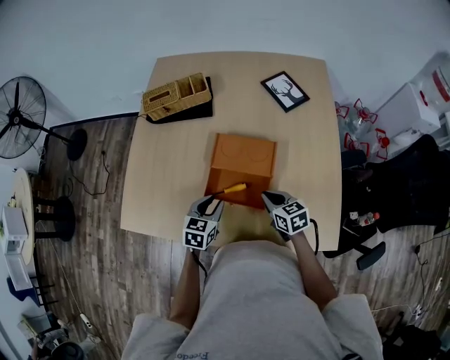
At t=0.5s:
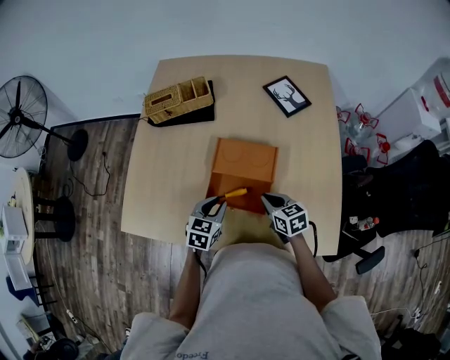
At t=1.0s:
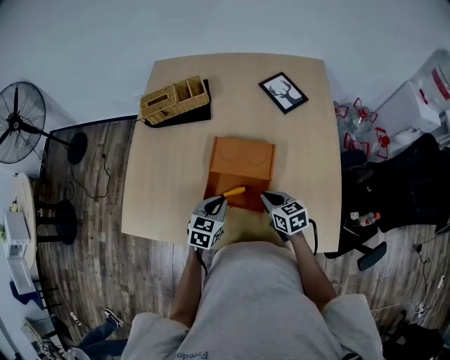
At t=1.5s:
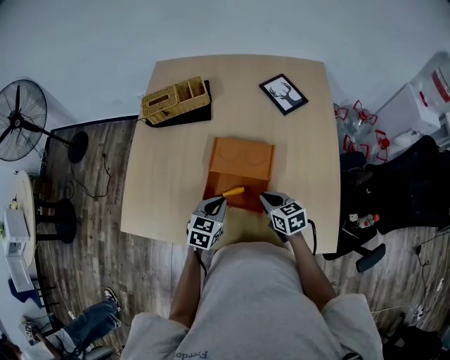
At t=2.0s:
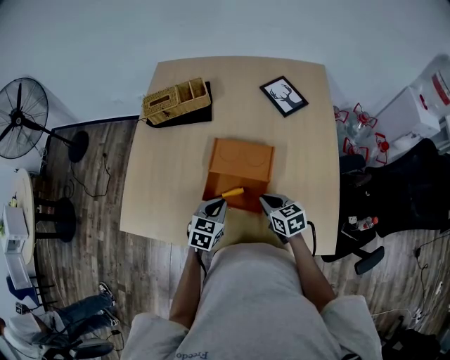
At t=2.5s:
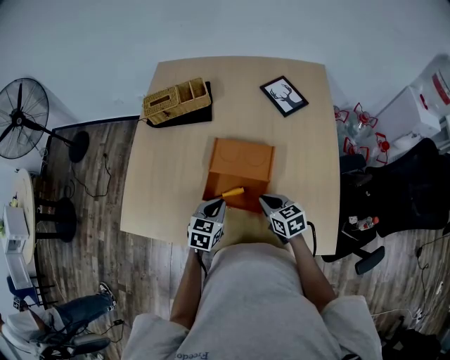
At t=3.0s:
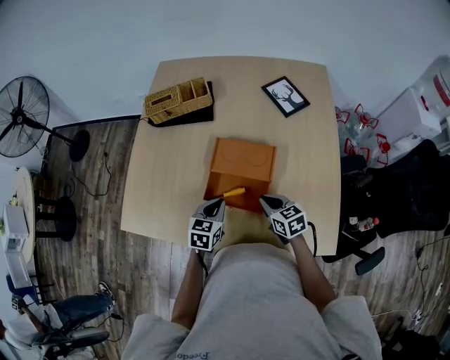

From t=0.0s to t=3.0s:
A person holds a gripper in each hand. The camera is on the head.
From t=0.0s to t=1.5s: The left gripper closes.
From t=1.5s to t=3.0s: There are only small adjustments of the grippers.

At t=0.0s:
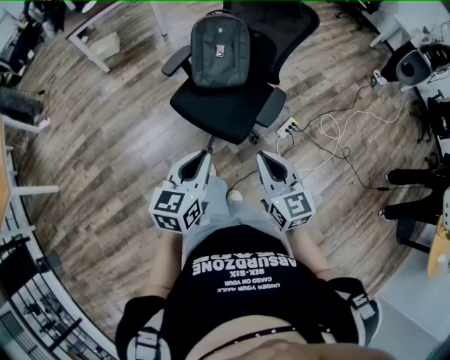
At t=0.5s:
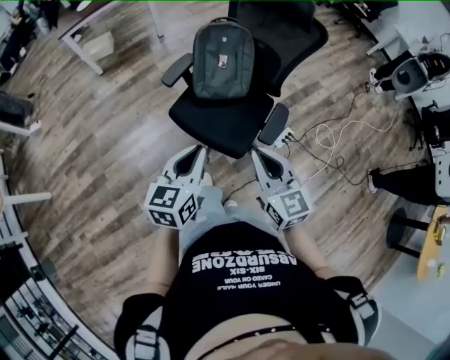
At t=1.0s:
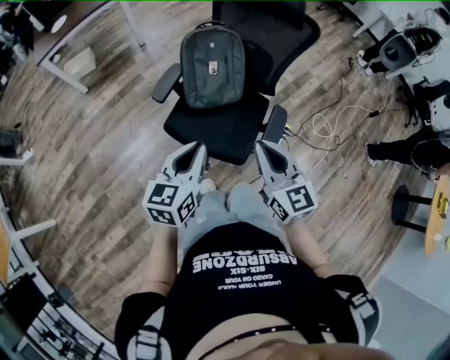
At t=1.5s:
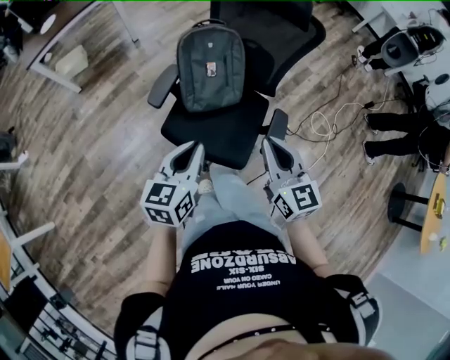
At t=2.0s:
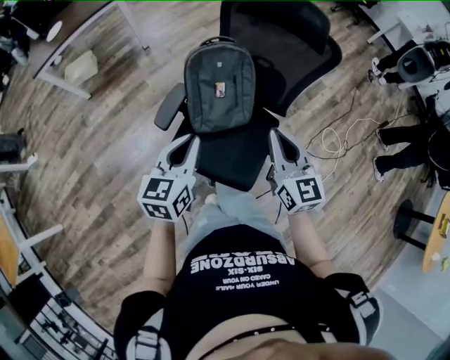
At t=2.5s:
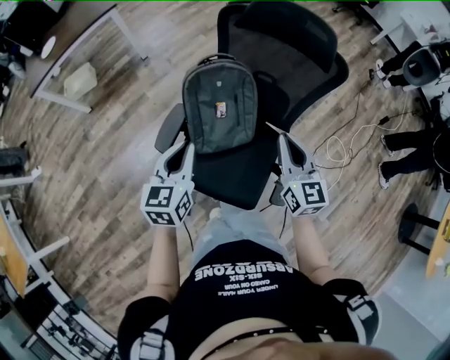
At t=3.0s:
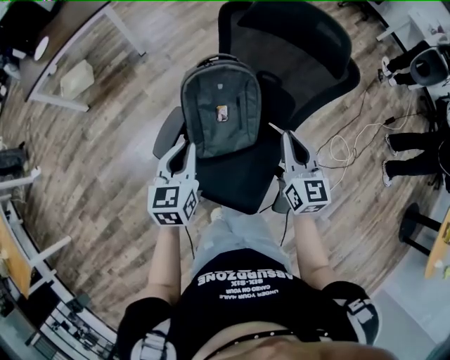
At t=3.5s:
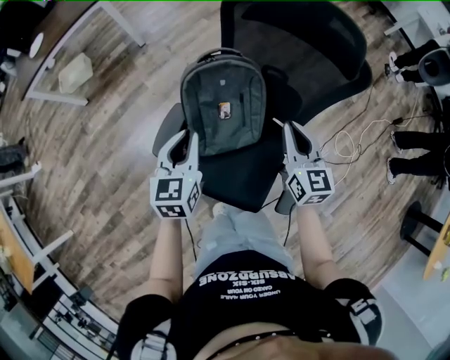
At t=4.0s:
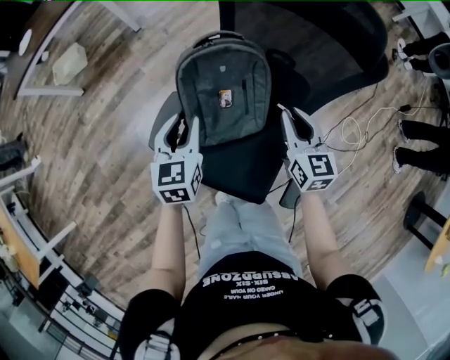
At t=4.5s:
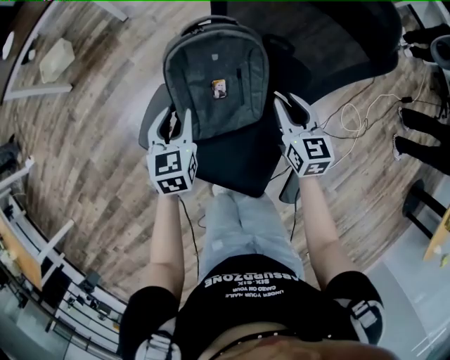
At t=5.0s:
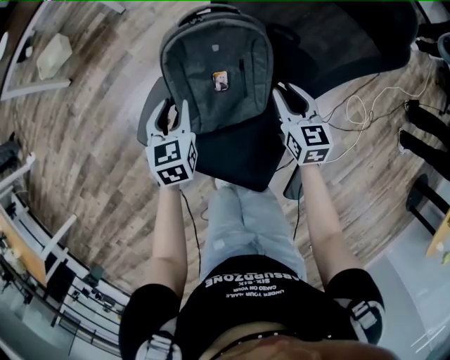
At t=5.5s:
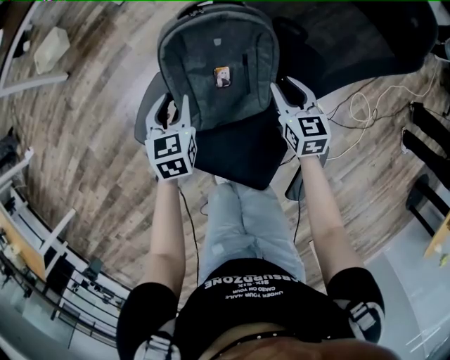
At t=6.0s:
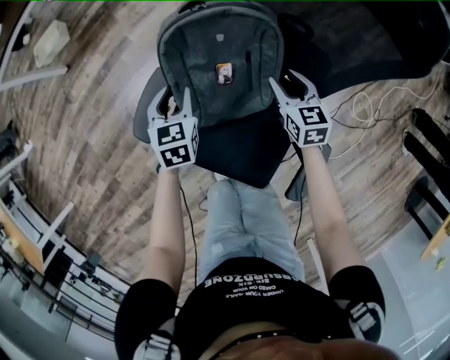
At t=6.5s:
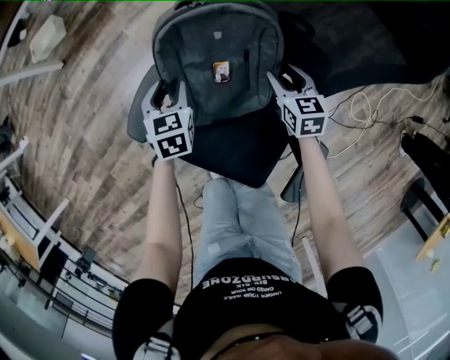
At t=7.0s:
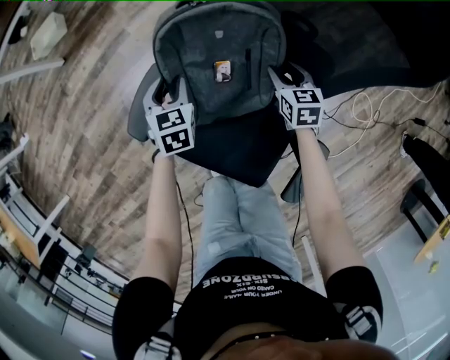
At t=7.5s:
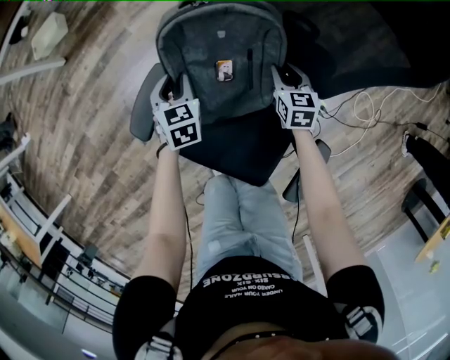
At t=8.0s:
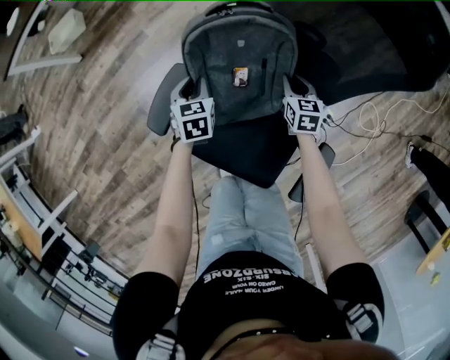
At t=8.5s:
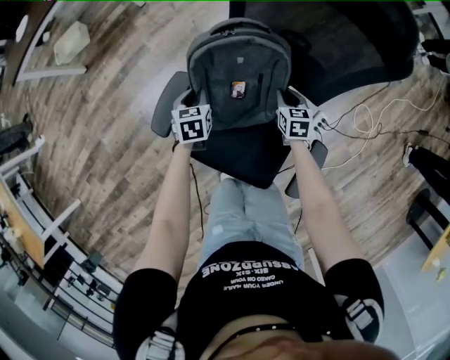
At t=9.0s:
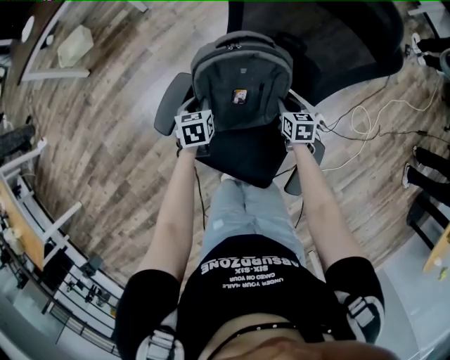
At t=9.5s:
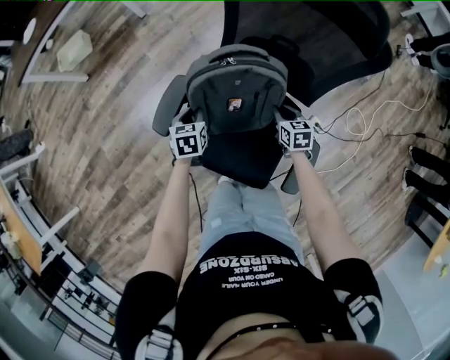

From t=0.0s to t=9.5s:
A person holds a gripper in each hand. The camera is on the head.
From t=0.0s to t=2.0s: Both grippers move forward, roughly 40 cm.
From t=2.0s to t=4.0s: Both grippers travel together forward and downward, some 25 cm.
From t=4.0s to t=5.5s: Both grippers travel together downward, approximately 15 cm.
From t=5.5s to t=7.5s: The grippers both shift downward by approximately 10 cm.
From t=7.5s to t=9.5s: The two grippers go about 10 cm backward.

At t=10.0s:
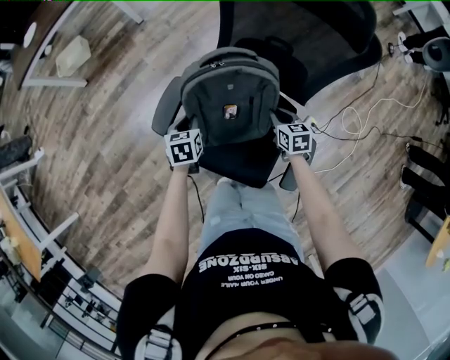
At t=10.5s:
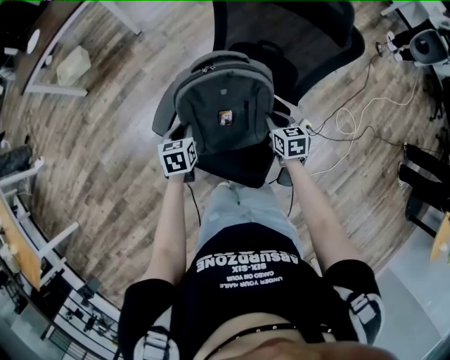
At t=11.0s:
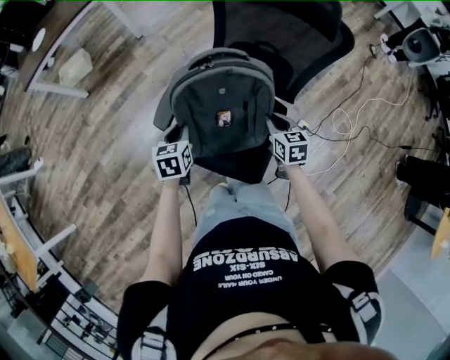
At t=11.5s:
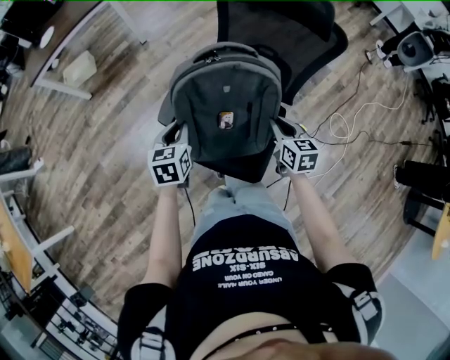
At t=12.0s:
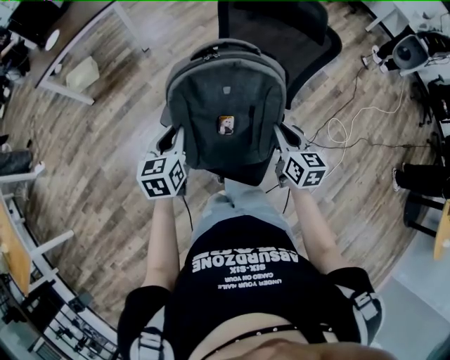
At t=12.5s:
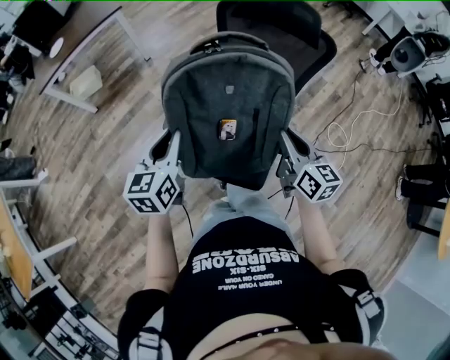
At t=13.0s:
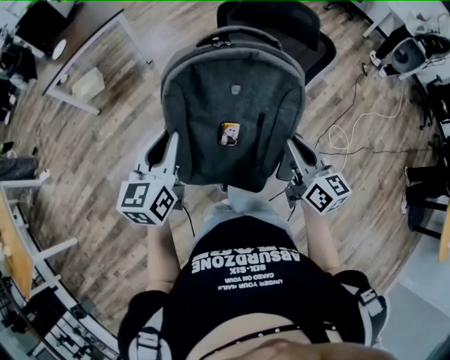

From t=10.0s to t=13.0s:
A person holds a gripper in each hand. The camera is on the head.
From t=10.0s to t=11.5s: The two grippers go some 20 cm upward and backward.
From t=11.5s to t=13.0s: The left gripper shifts approximately 20 cm upward, and swivels about 30 degrees. The right gripper travels upward and backward by approximately 20 cm, and swivels approximately 30 degrees.

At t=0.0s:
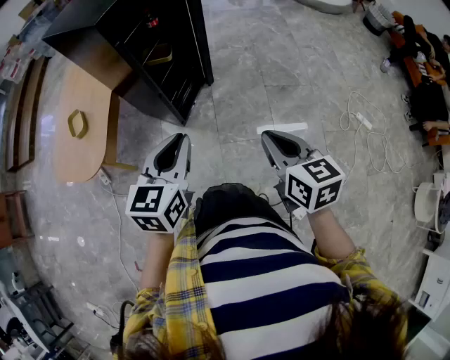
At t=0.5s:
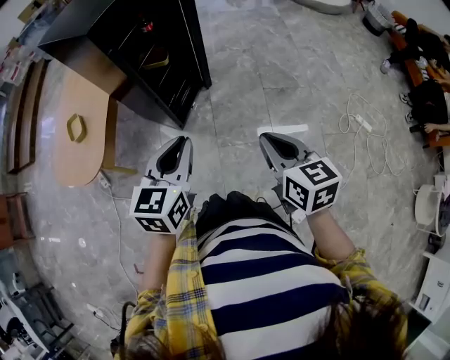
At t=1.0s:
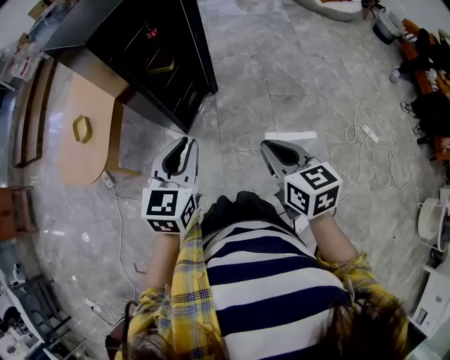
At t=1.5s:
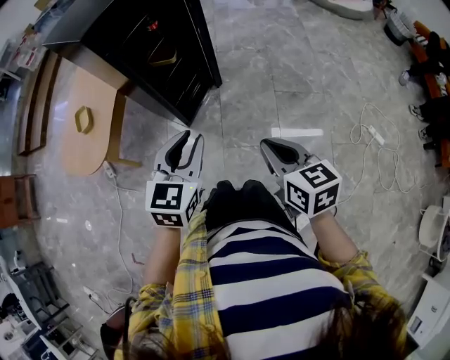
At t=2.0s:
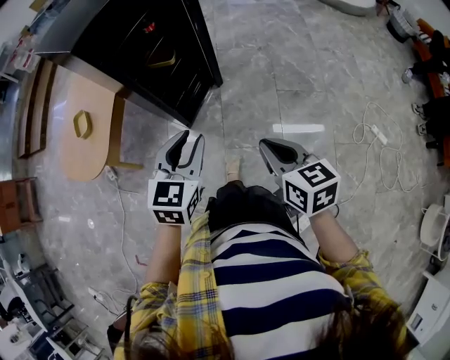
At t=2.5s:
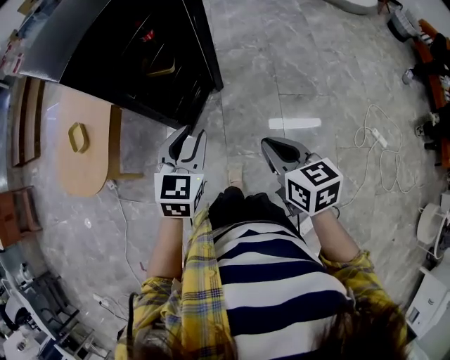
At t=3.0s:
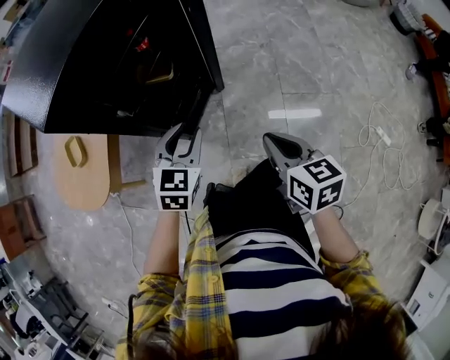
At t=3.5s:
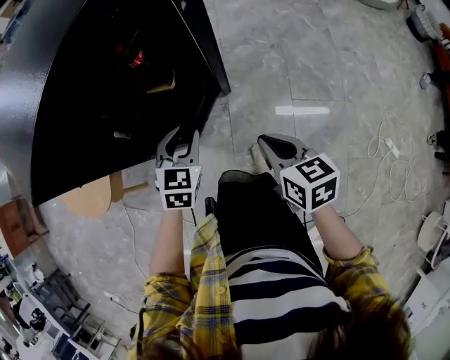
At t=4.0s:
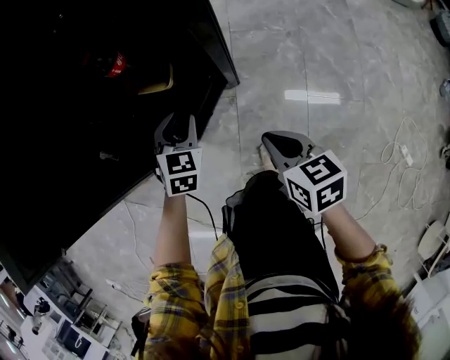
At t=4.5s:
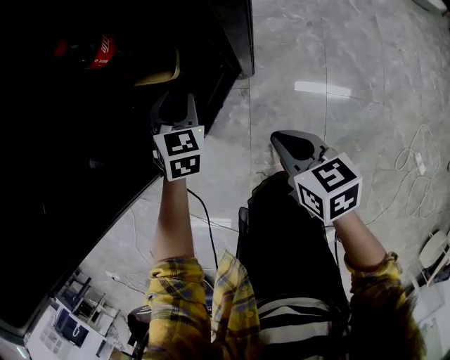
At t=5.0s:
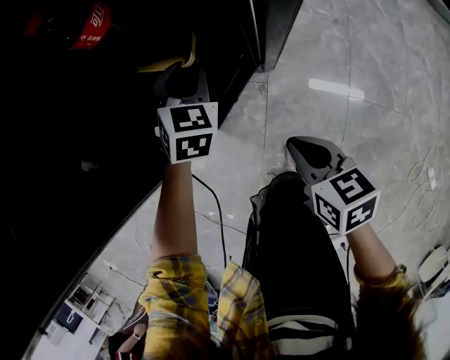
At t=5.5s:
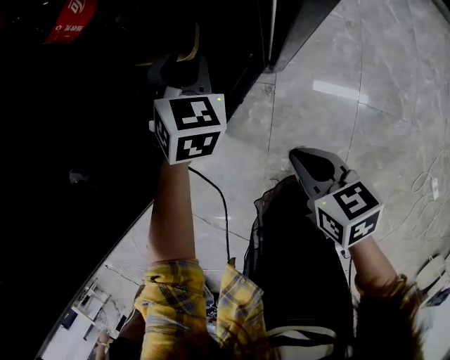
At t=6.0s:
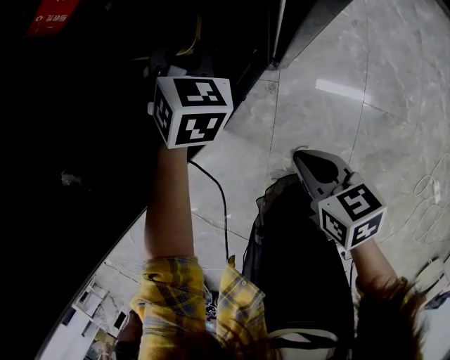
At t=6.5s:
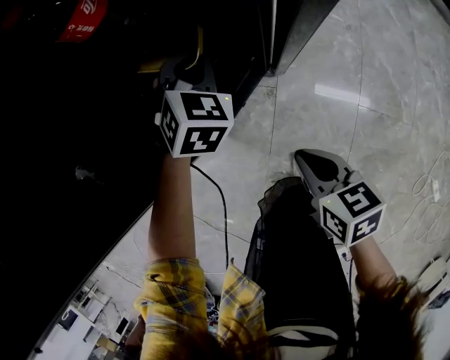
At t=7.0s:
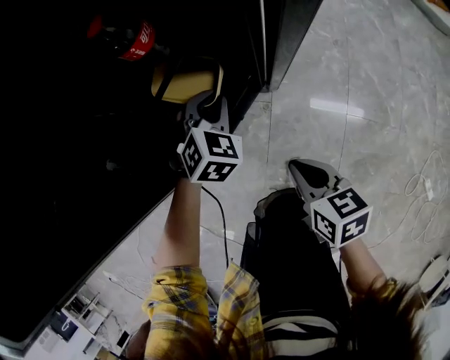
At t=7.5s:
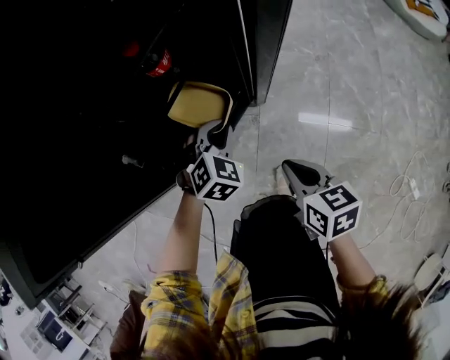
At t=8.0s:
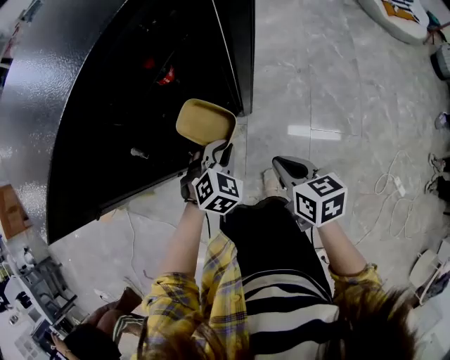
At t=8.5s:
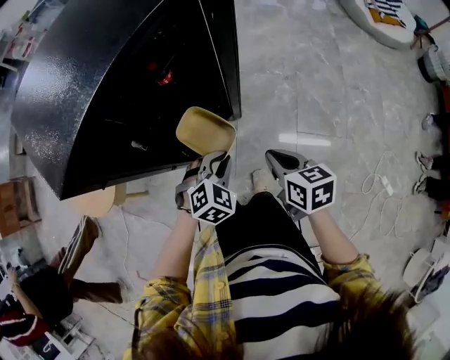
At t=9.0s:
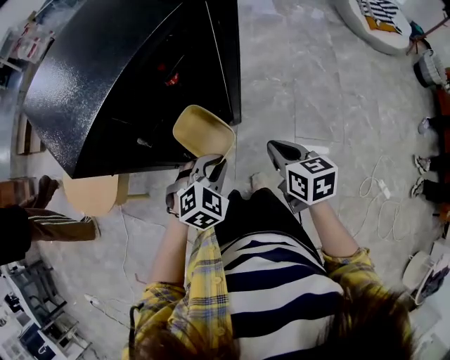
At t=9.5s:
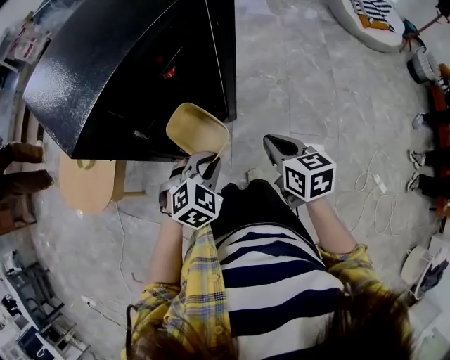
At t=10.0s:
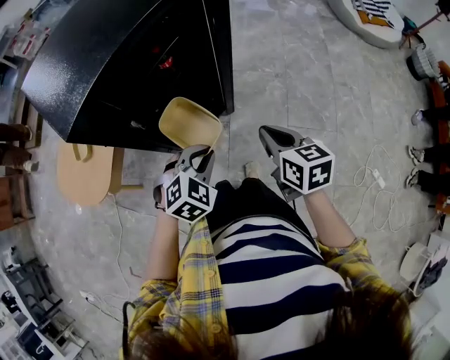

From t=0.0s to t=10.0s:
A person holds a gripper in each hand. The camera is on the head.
From t=0.0s to t=2.0s: The left gripper goes approximately 10 cm to the right and forward. Meanwhile the right gripper shifts roughly 10 cm forward and to the right.
From t=2.0s to t=4.0s: Both grippers move forward and downward, roughly 40 cm. The left gripper swivels some 20 degrees.
From t=4.0s to t=6.0s: The left gripper goes some 15 cm forward and downward. Meanwhile the right gripper goes about 15 cm downward.
From t=6.0s to t=8.0s: The left gripper goes about 25 cm backward and upward, and rotates some 20 degrees, while the right gripper is displaced upward by about 20 cm.
From t=8.0s to t=10.0s: The right gripper goes some 10 cm upward. Meanwhile the left gripper is displaced upward and backward by about 15 cm.

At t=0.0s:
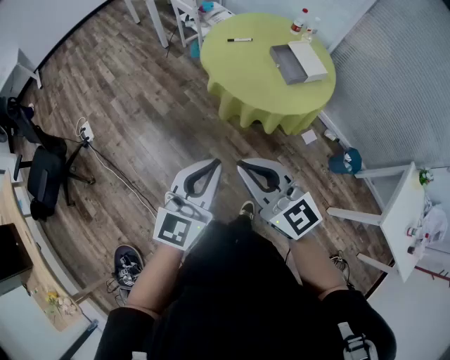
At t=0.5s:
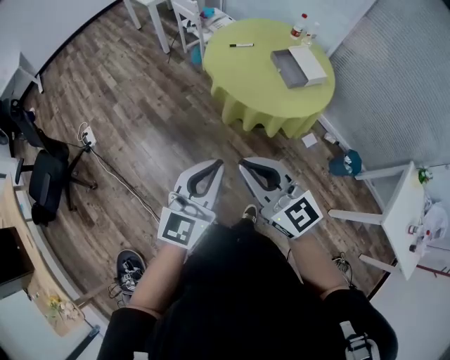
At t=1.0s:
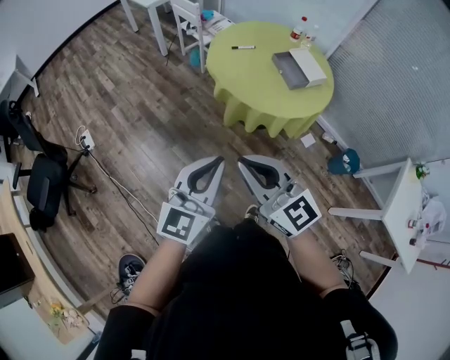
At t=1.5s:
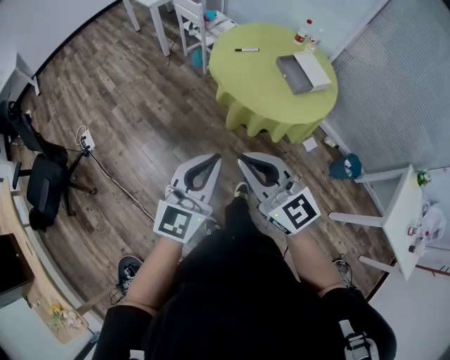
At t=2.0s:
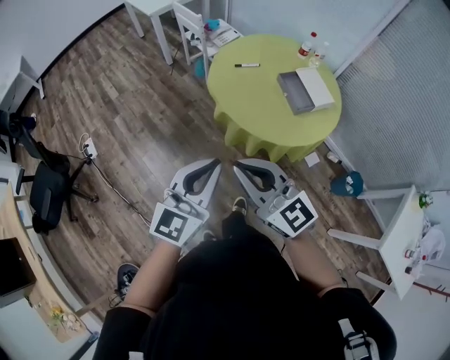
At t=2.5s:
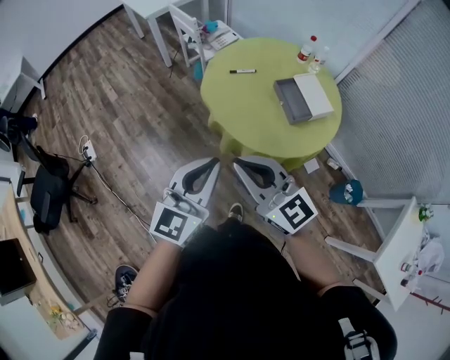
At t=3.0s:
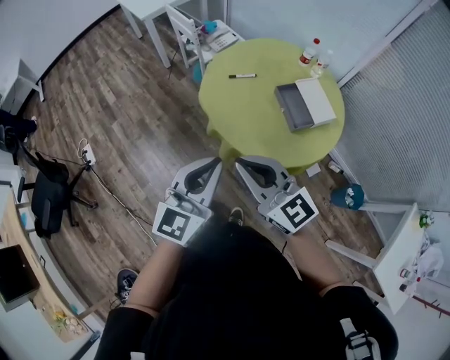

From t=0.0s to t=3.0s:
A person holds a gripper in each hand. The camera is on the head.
From t=0.0s to t=1.5s: The two grippers go roughly 5 cm to the left.
From t=1.5s to t=3.0s: The two grippers go roughly 25 cm forward and to the right.
